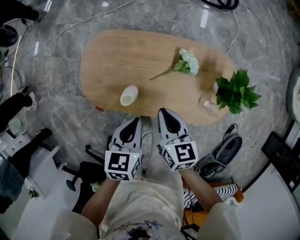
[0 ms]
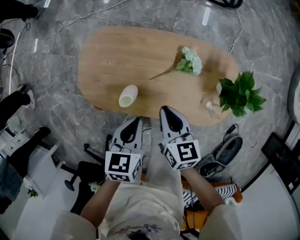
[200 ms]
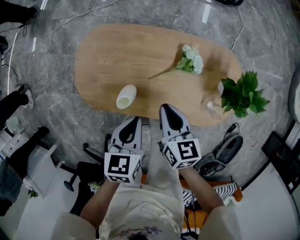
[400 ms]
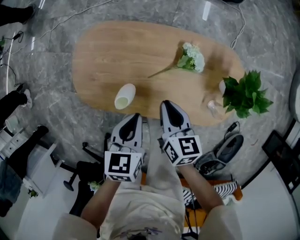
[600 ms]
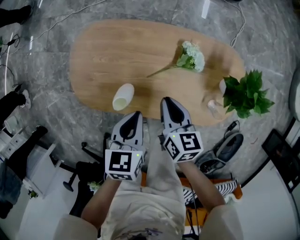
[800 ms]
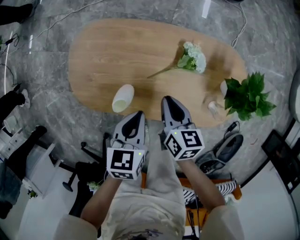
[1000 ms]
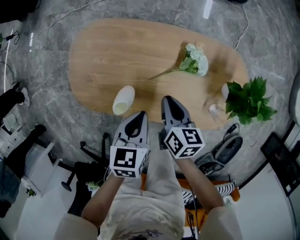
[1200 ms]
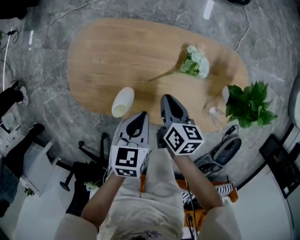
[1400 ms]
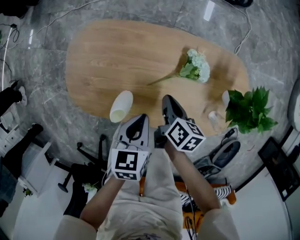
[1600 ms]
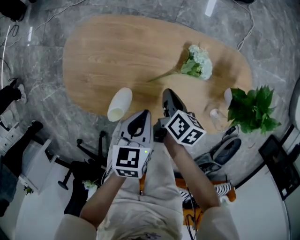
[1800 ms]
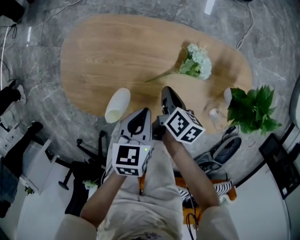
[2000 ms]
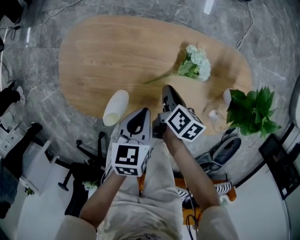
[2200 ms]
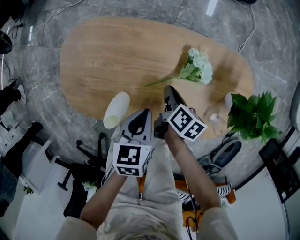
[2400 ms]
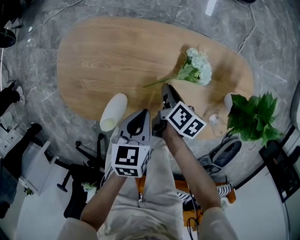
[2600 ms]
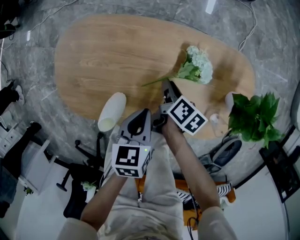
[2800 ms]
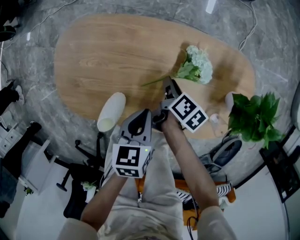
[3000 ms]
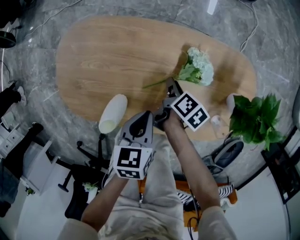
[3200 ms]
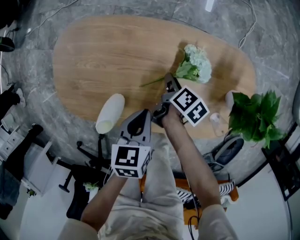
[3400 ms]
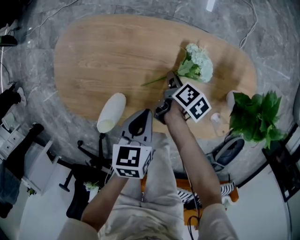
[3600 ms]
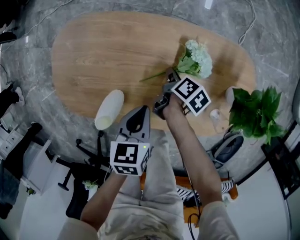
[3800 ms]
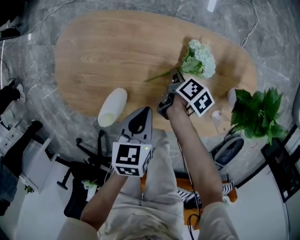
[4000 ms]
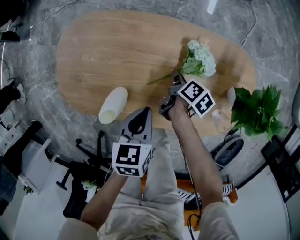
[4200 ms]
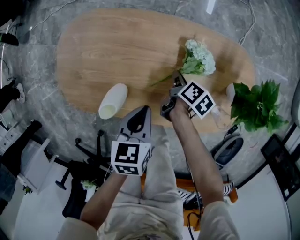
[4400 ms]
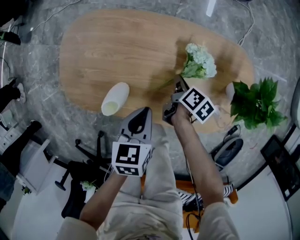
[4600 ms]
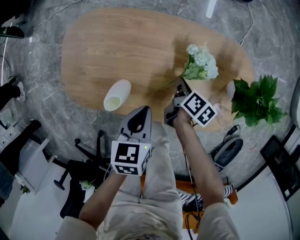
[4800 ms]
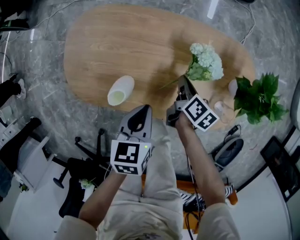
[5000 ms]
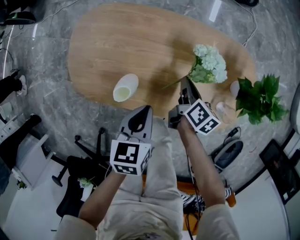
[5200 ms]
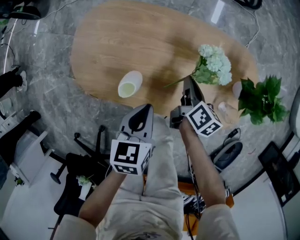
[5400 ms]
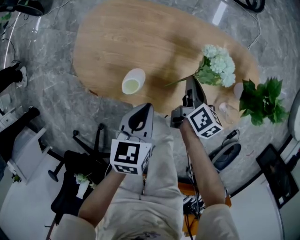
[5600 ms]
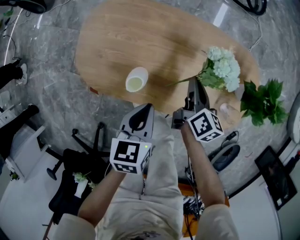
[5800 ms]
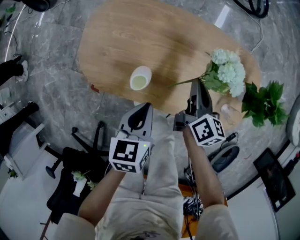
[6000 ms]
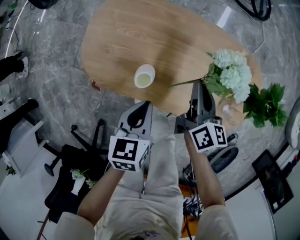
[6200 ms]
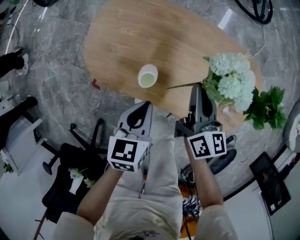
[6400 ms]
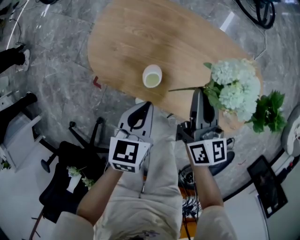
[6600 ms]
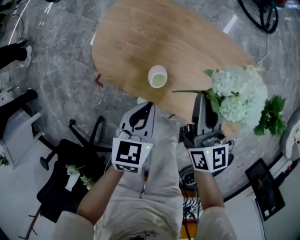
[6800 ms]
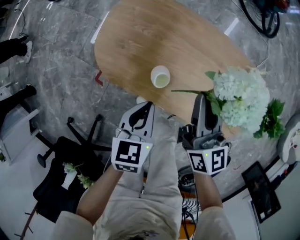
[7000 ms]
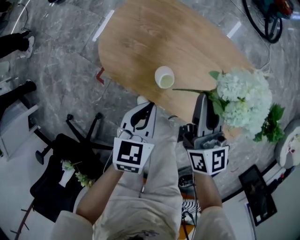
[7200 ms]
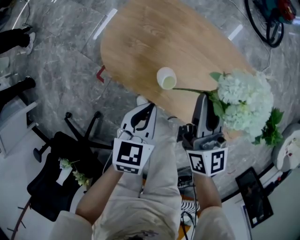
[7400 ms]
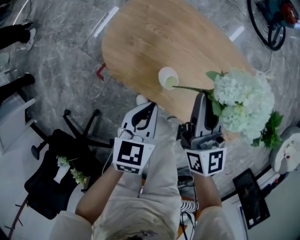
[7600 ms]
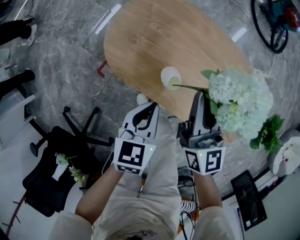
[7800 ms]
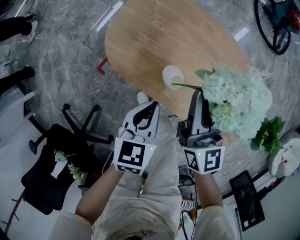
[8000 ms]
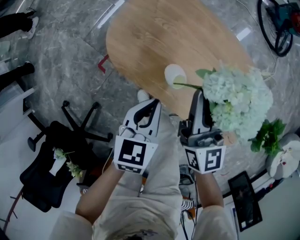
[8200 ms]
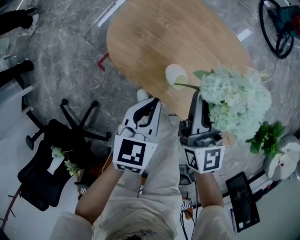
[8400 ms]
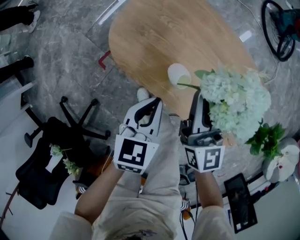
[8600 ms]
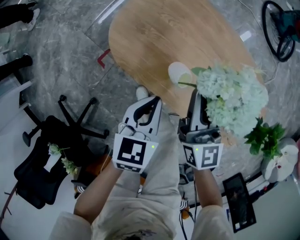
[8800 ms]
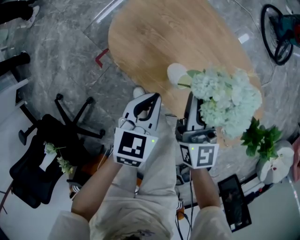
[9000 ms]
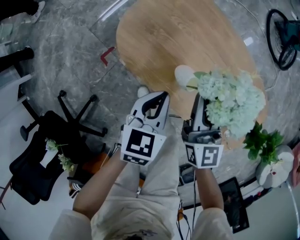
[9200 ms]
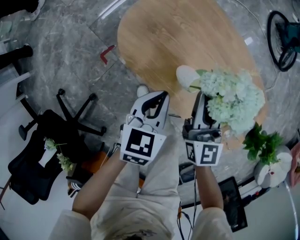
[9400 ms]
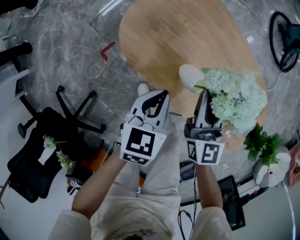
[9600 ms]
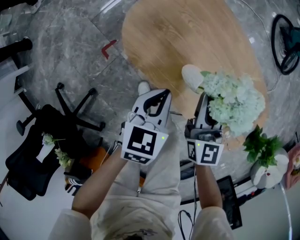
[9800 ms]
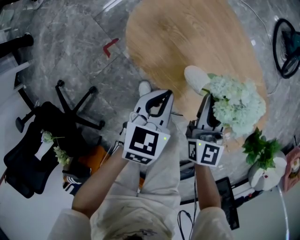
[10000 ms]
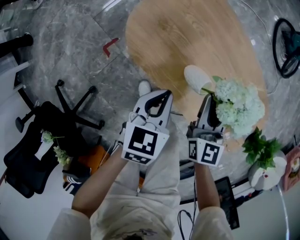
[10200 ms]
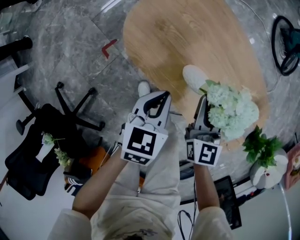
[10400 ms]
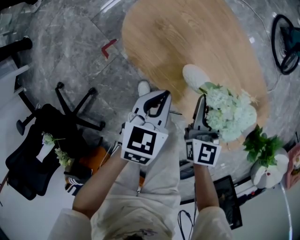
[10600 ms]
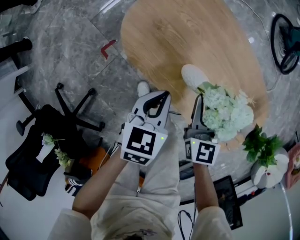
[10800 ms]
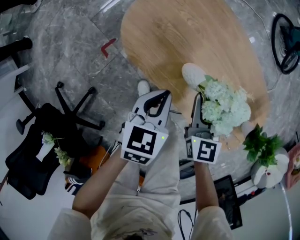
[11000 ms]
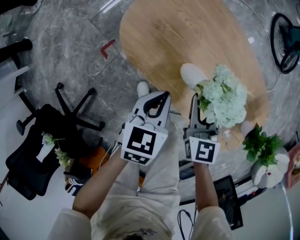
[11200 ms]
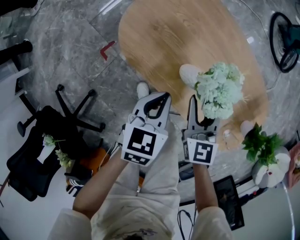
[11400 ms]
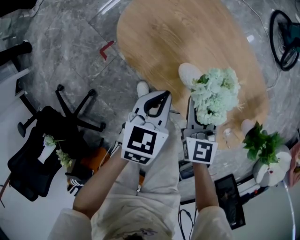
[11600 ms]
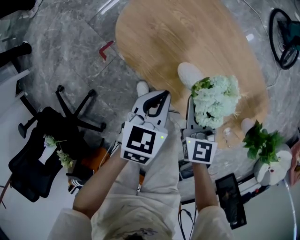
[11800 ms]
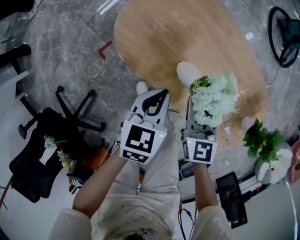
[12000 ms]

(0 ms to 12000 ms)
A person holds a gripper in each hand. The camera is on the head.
0 ms - 1600 ms: The grippers both shift downward by some 15 cm. The right gripper rotates roughly 40 degrees.
1600 ms - 3000 ms: The right gripper heads downward and forward, covering roughly 10 cm, and opens, while the left gripper goes roughly 5 cm downward.
3000 ms - 4400 ms: The grippers make only small movements.
4400 ms - 6000 ms: The left gripper moves to the left, backward and upward, roughly 10 cm. The right gripper moves upward, about 15 cm, and rotates some 40 degrees.
6000 ms - 7600 ms: The left gripper moves to the left, about 10 cm; the right gripper heads upward and to the left, covering roughly 20 cm, and swivels approximately 40 degrees.
7600 ms - 9000 ms: The right gripper goes approximately 10 cm downward and to the left.
9000 ms - 10400 ms: The right gripper moves downward, about 5 cm.
10400 ms - 12000 ms: The grippers move only a little.

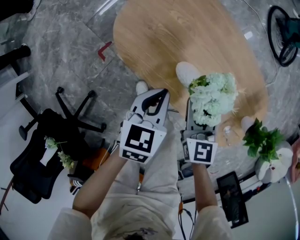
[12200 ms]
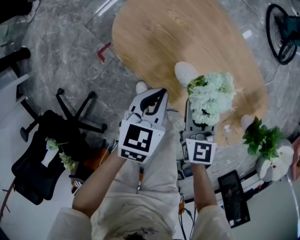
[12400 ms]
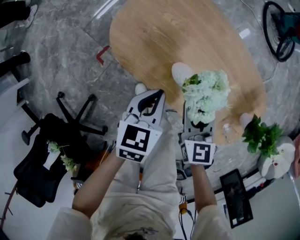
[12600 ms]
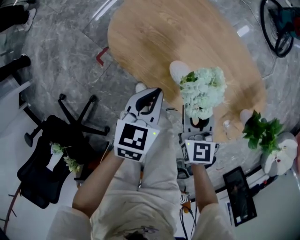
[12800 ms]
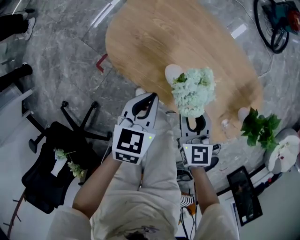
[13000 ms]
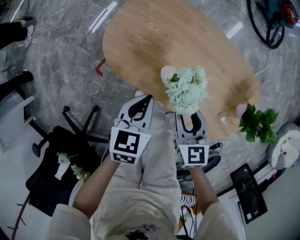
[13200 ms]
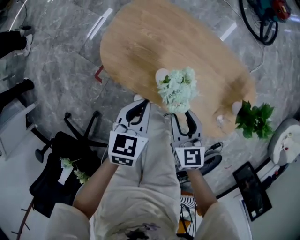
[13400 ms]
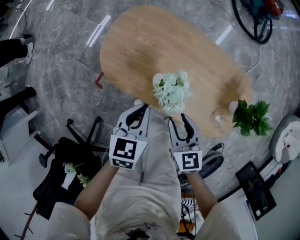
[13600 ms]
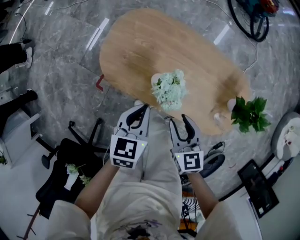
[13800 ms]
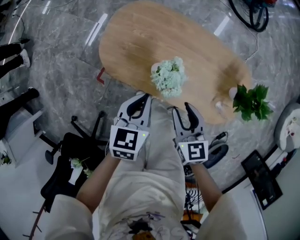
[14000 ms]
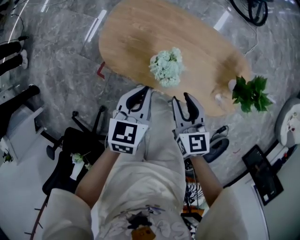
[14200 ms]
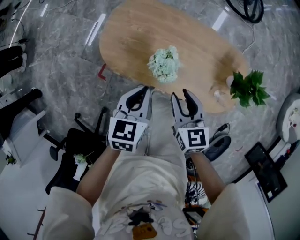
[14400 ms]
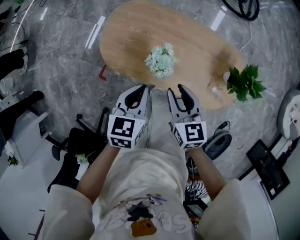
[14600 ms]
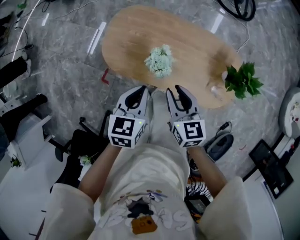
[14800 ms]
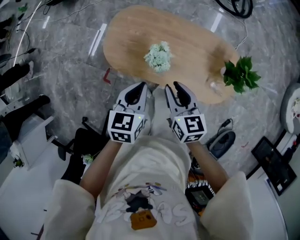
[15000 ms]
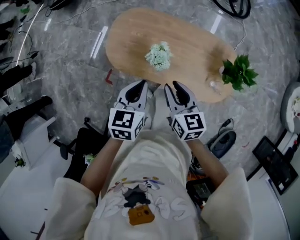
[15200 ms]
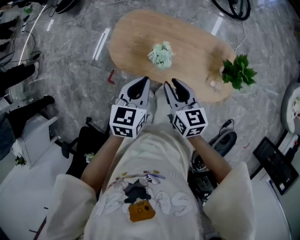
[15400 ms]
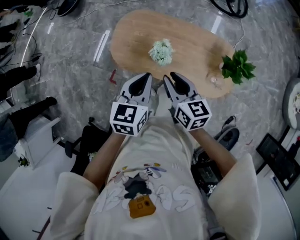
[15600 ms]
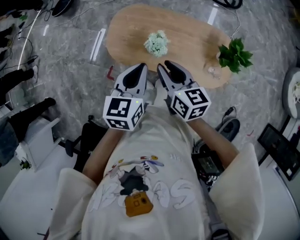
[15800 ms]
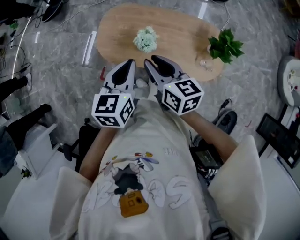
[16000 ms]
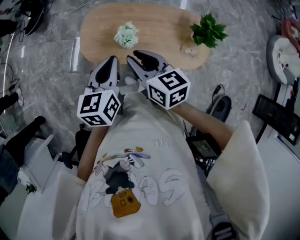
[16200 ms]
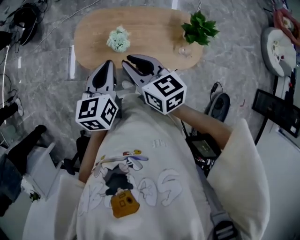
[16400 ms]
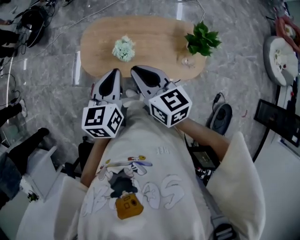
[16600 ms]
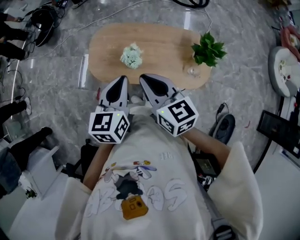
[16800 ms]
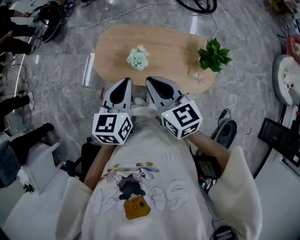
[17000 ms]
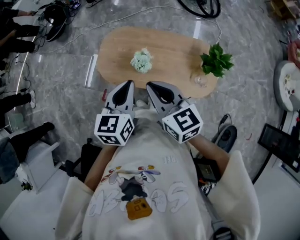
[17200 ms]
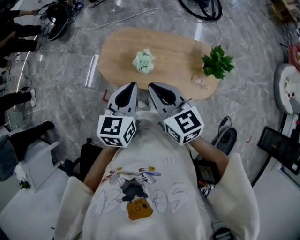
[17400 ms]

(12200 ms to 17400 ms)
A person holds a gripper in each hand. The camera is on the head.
12200 ms - 14000 ms: The grippers both shift upward by some 10 cm.
14000 ms - 15600 ms: Both grippers travel together upward, some 20 cm.
15600 ms - 17400 ms: The left gripper goes approximately 5 cm upward; the right gripper goes about 10 cm upward, and closes its fingers.

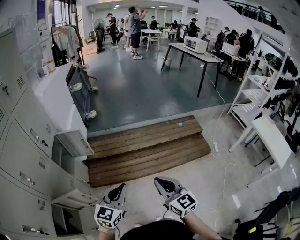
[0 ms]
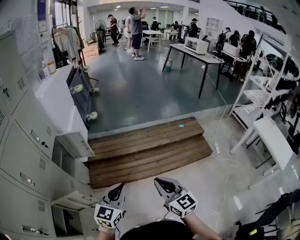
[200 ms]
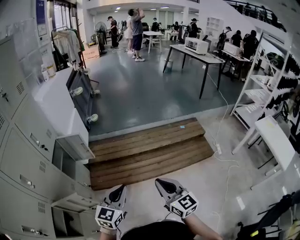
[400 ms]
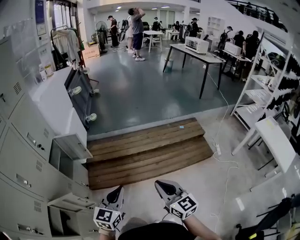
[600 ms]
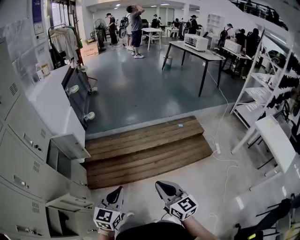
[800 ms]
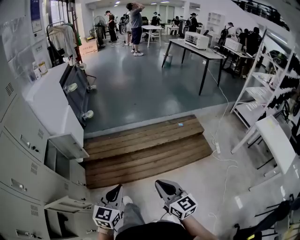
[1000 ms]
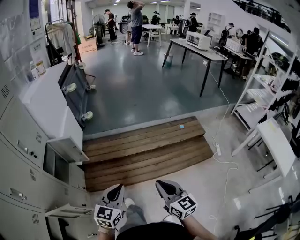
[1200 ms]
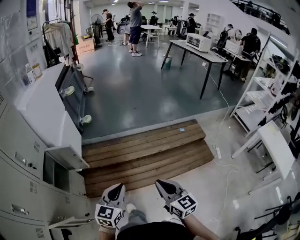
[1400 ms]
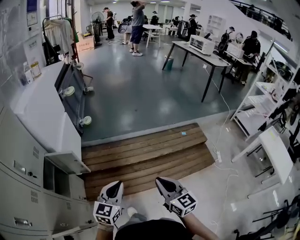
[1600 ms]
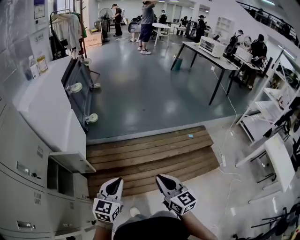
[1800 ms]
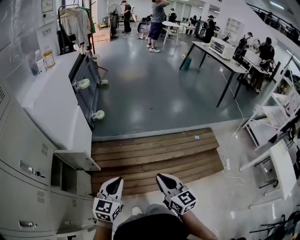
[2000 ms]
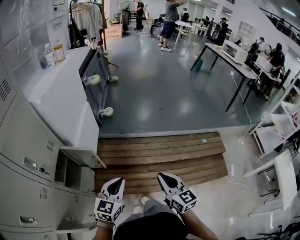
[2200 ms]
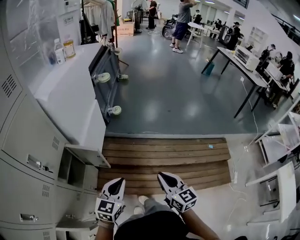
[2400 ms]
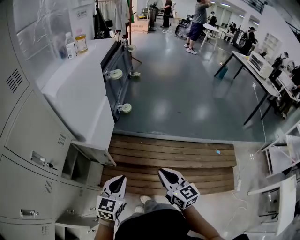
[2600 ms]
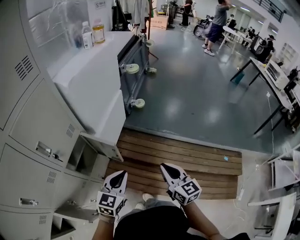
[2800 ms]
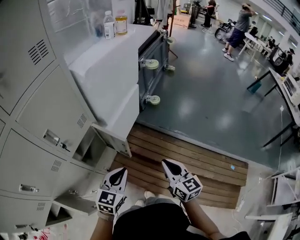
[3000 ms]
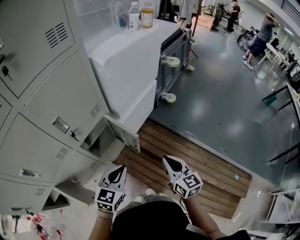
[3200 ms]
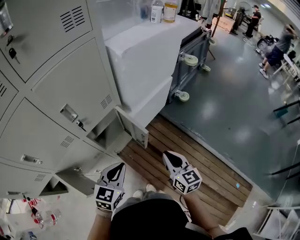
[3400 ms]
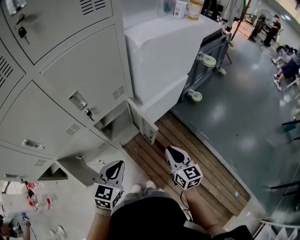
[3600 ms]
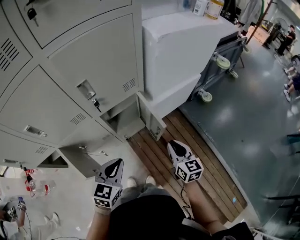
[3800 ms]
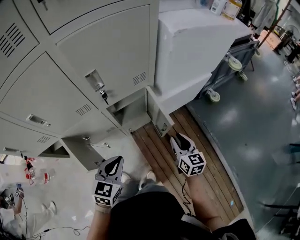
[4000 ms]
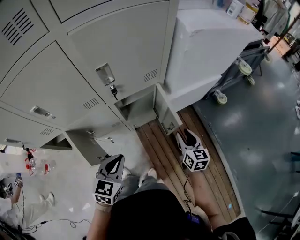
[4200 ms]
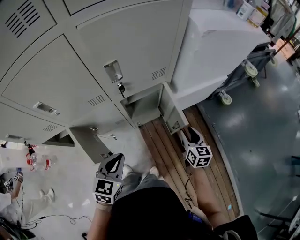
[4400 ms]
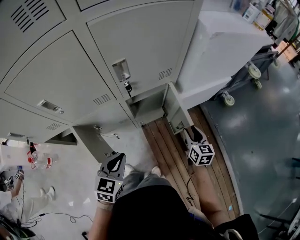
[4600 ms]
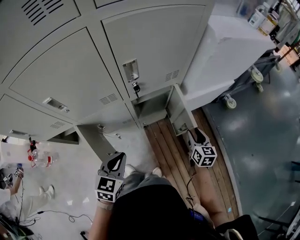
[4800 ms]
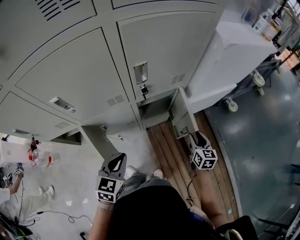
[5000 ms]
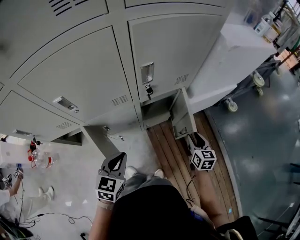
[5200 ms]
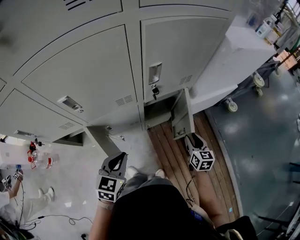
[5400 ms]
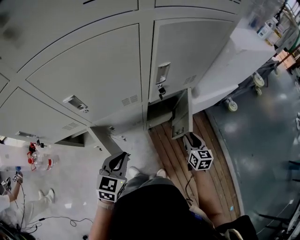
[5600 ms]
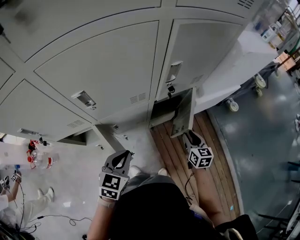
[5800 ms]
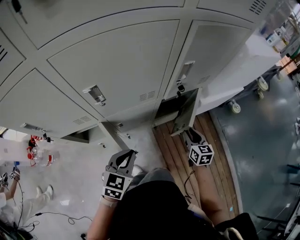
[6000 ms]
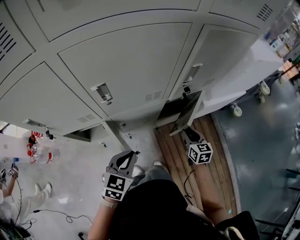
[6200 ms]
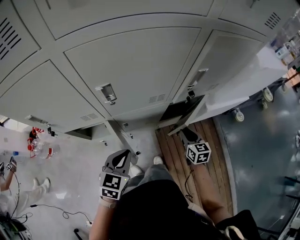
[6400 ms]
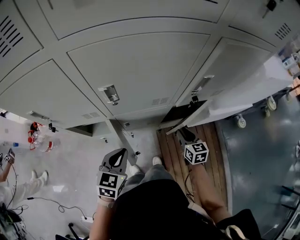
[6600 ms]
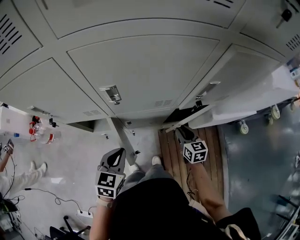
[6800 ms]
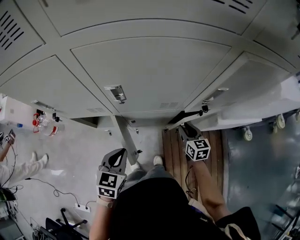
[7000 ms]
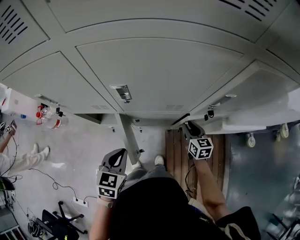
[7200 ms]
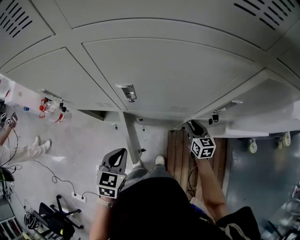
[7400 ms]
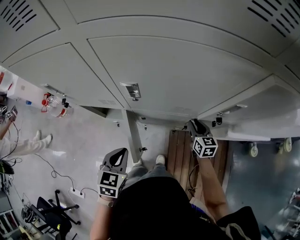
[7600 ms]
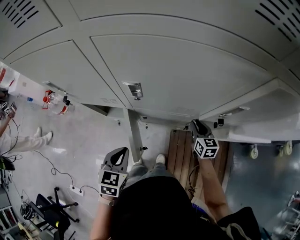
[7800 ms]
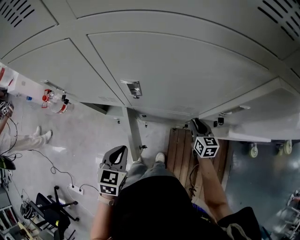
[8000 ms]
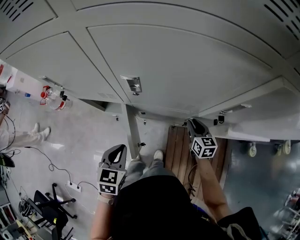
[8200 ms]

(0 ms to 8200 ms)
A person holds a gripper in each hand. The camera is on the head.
0 ms - 1600 ms: Both grippers travel together forward, roughly 25 cm.
1600 ms - 3200 ms: The right gripper changes place by some 40 cm, and turns by about 40 degrees, while the left gripper ends up roughly 30 cm from where it was, and turns by about 40 degrees.
3200 ms - 5000 ms: The left gripper changes place by about 25 cm, and rotates about 40 degrees; the right gripper ends up about 25 cm from where it was, changes its angle by about 20 degrees, and opens its fingers.
5000 ms - 6600 ms: The left gripper shifts about 15 cm to the left; the right gripper goes some 25 cm to the left, and changes its angle by roughly 20 degrees.
6600 ms - 8200 ms: The right gripper is displaced forward by about 10 cm; the left gripper swivels approximately 20 degrees.
